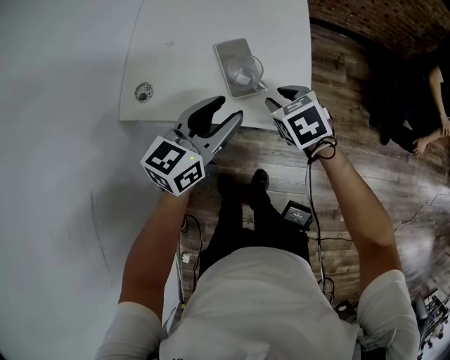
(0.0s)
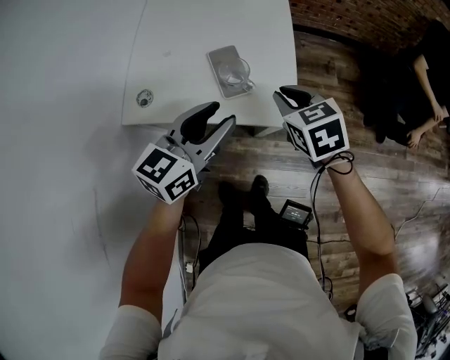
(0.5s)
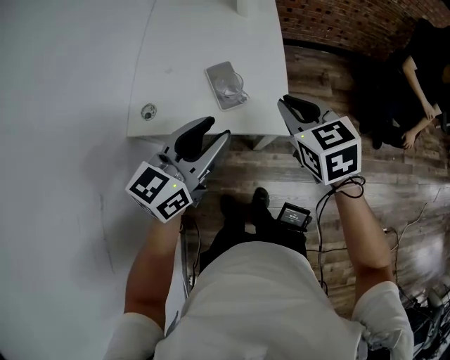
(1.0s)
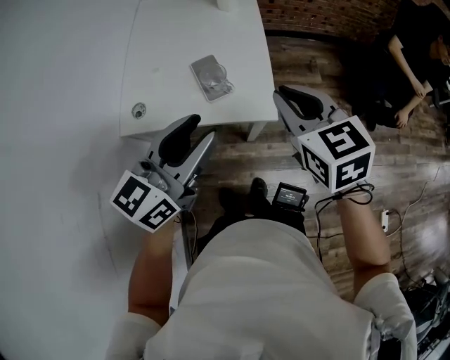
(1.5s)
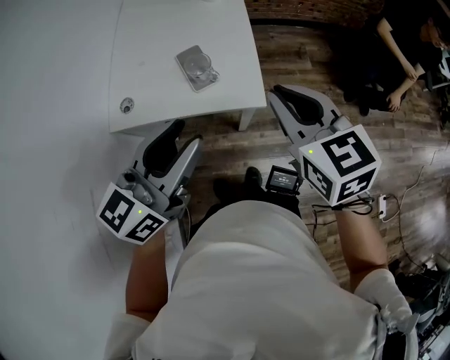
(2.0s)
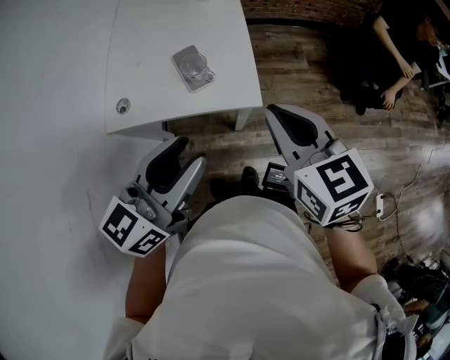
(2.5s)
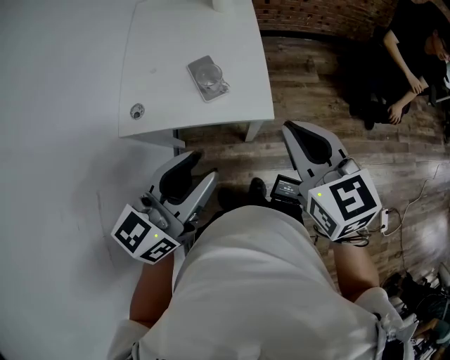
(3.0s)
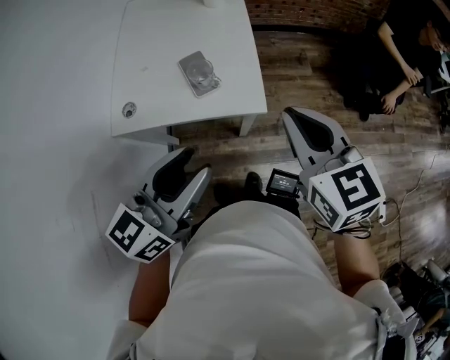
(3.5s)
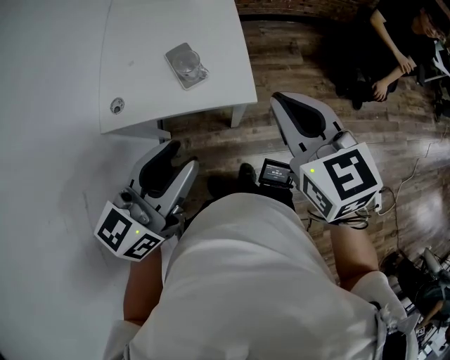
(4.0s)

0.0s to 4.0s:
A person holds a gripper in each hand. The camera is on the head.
0.0s to 2.0s: Both grippers move upward and backward, roughly 25 cm. The right gripper angles its fingers upward, by about 30 degrees, and closes up.
2.0s to 4.0s: The grippers make only small movements.

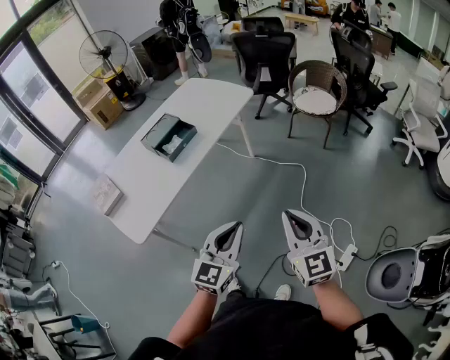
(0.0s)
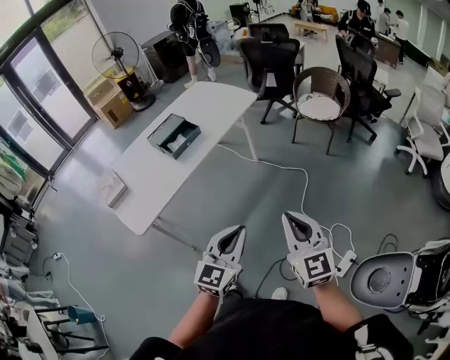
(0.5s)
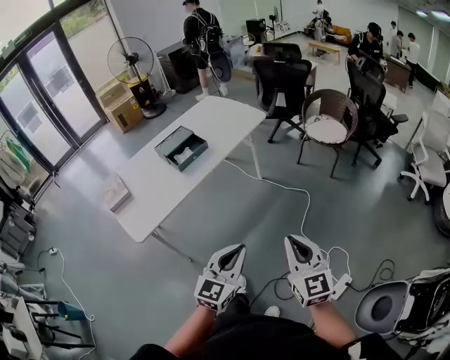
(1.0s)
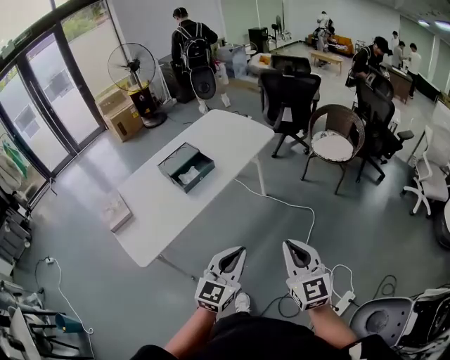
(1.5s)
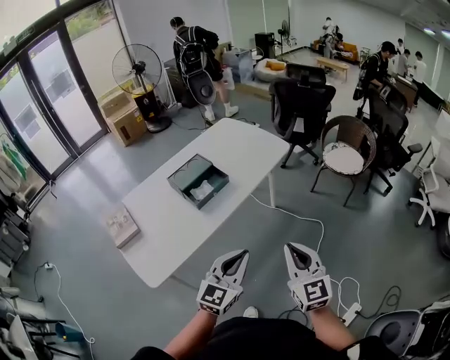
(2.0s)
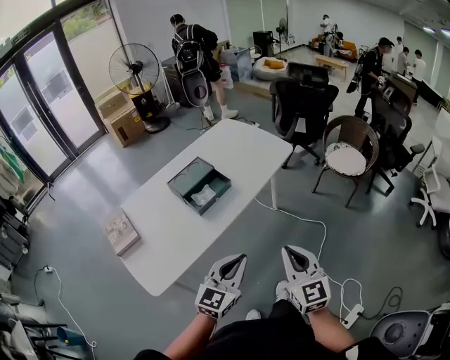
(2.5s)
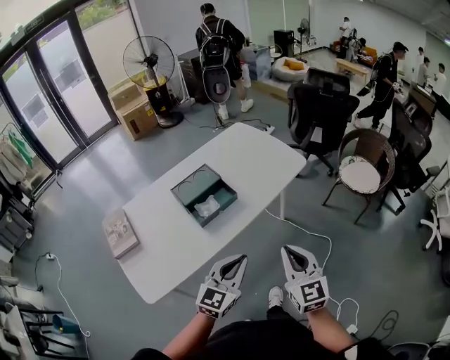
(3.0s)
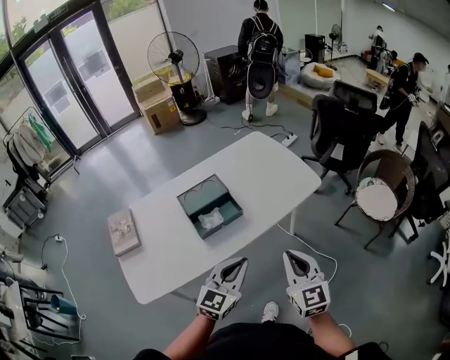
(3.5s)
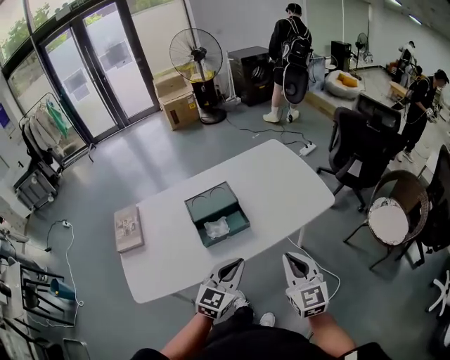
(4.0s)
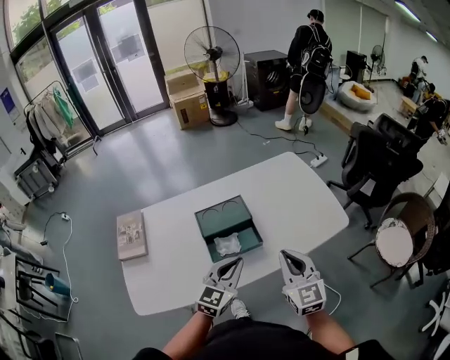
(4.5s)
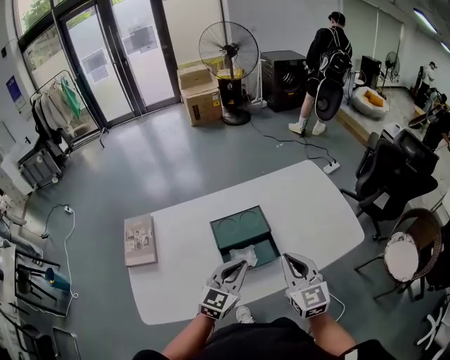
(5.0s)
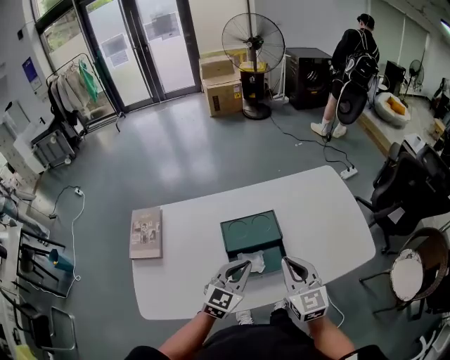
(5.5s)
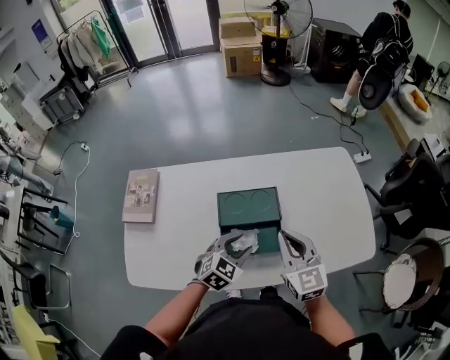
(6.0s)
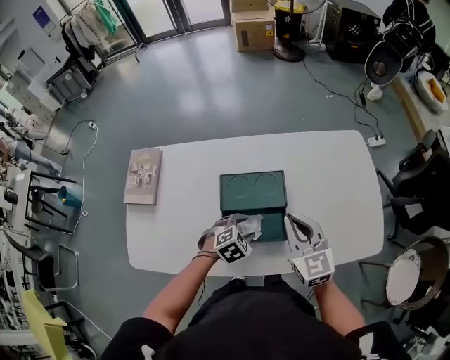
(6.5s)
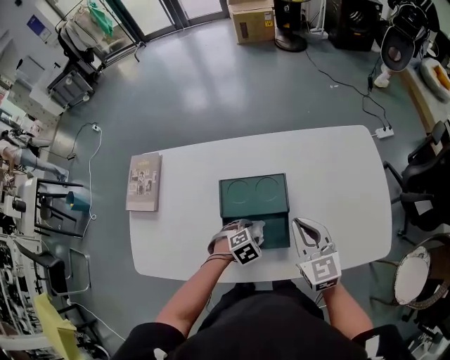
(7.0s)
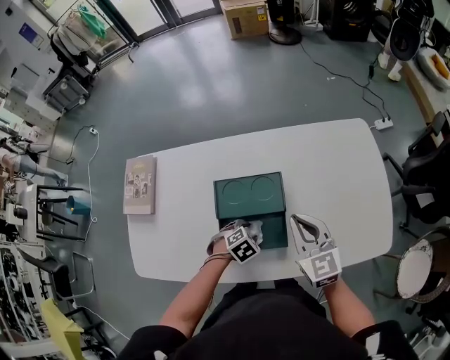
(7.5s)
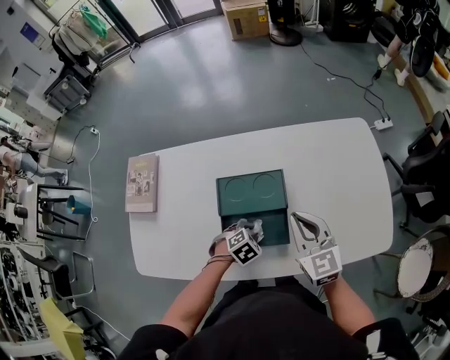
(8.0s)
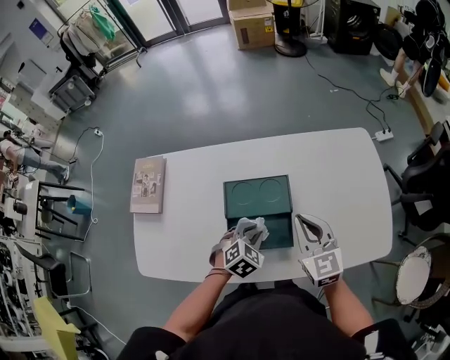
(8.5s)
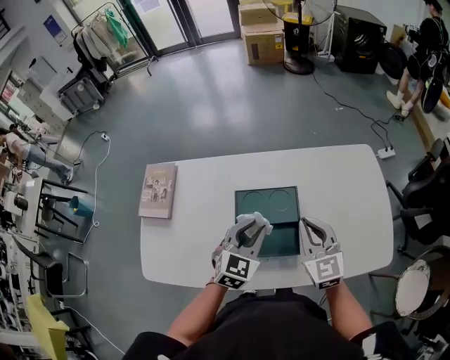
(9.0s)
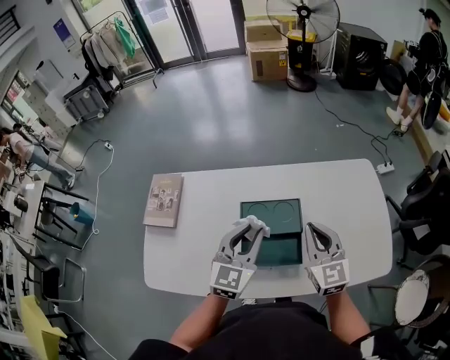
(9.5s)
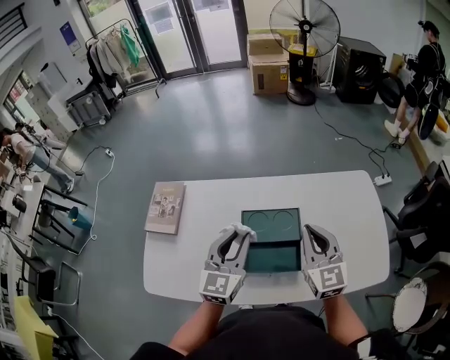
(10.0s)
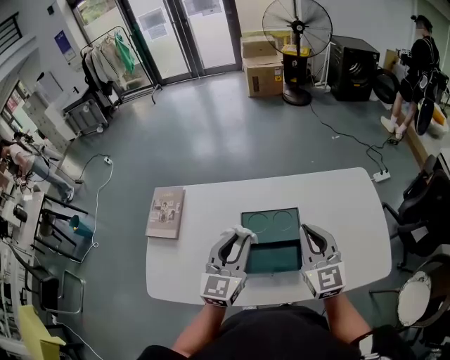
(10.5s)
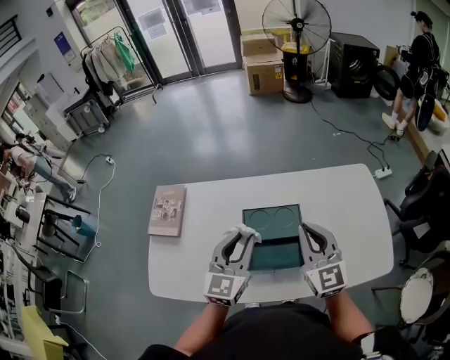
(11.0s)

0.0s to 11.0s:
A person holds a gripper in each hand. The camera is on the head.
0.0s to 2.0s: The two grippers go some 20 cm forward and to the left.
2.0s to 3.5s: The two grippers go approximately 25 cm forward.
3.5s to 5.5s: The grippers both shift forward and to the left by about 30 cm. The right gripper changes its angle by approximately 20 degrees.
5.5s to 7.5s: The left gripper moves downward, approximately 25 cm, points its fingers roughly 60 degrees further downward, and opens up. Meanwhile the right gripper goes some 15 cm forward and downward.
7.5s to 9.0s: The right gripper moves approximately 5 cm, while the left gripper travels upward by about 25 cm, points its fingers roughly 50 degrees further upward, and closes up.
9.0s to 11.0s: The right gripper is displaced upward by some 10 cm. Meanwhile the left gripper is displaced upward and to the left by approximately 10 cm, and turns by approximately 20 degrees.

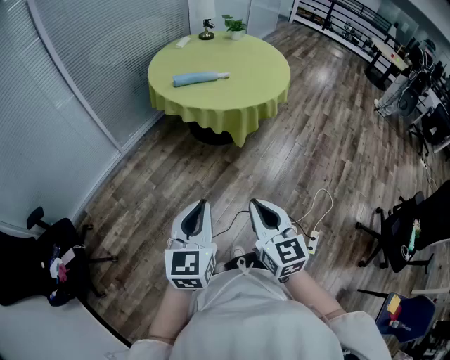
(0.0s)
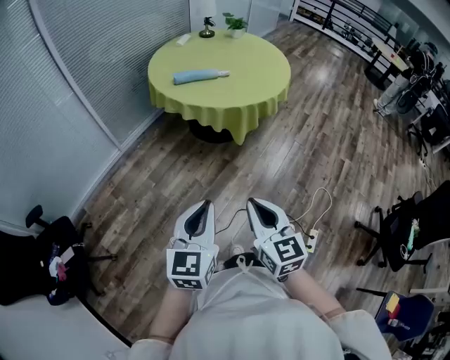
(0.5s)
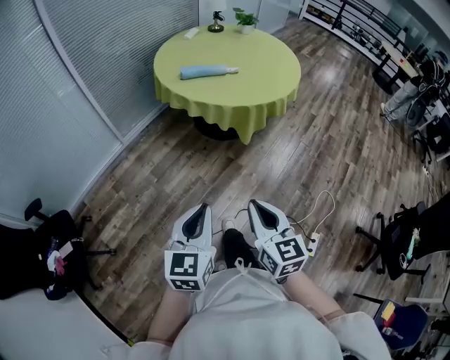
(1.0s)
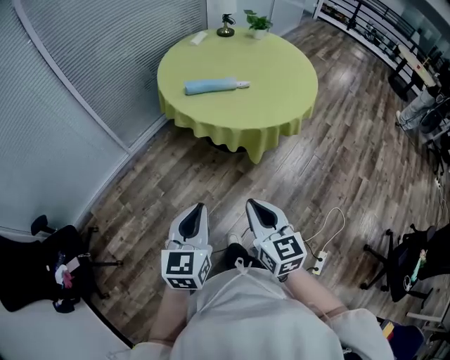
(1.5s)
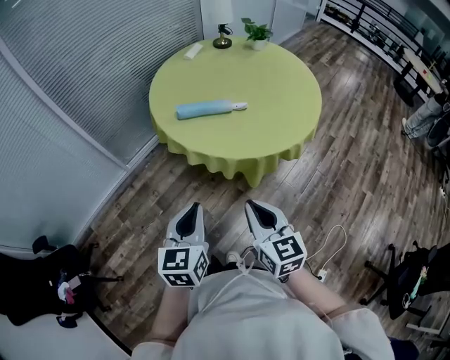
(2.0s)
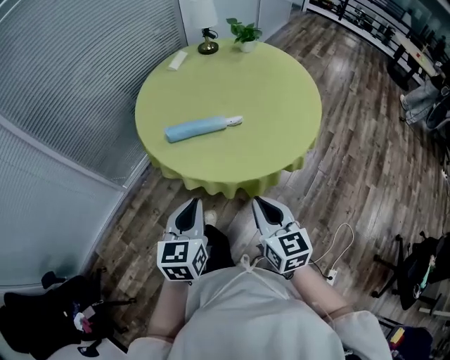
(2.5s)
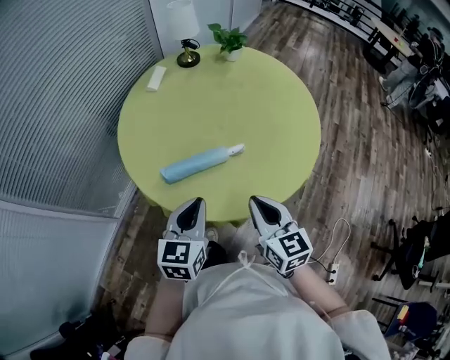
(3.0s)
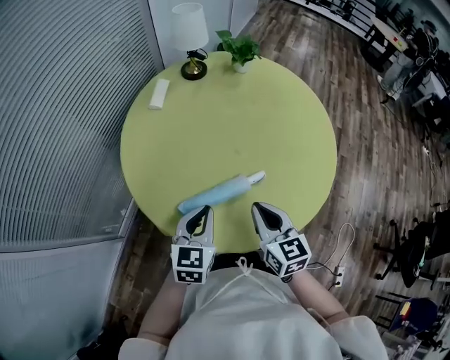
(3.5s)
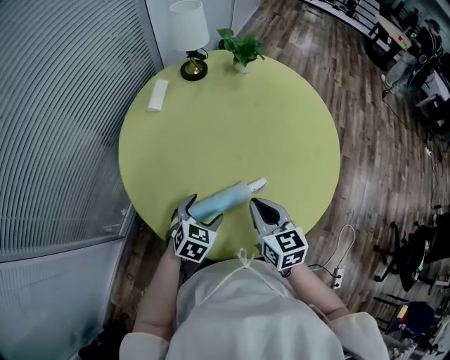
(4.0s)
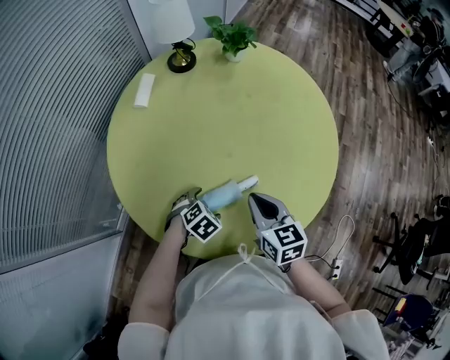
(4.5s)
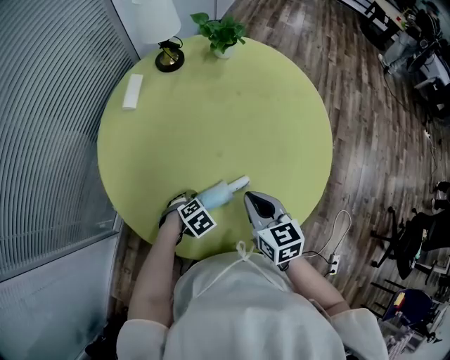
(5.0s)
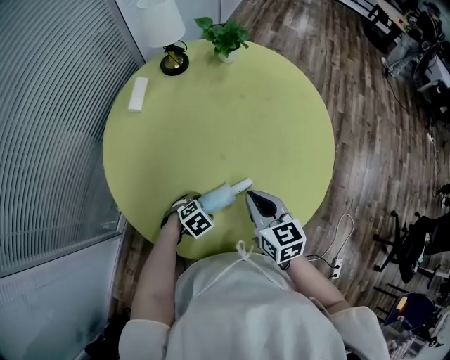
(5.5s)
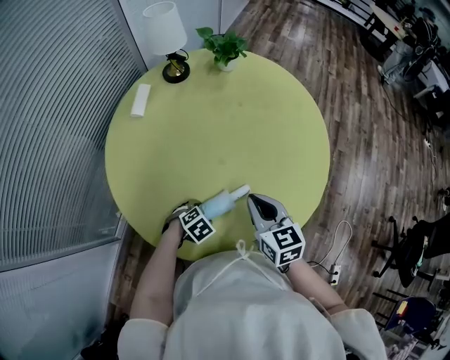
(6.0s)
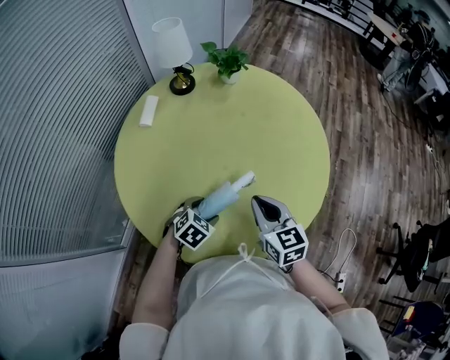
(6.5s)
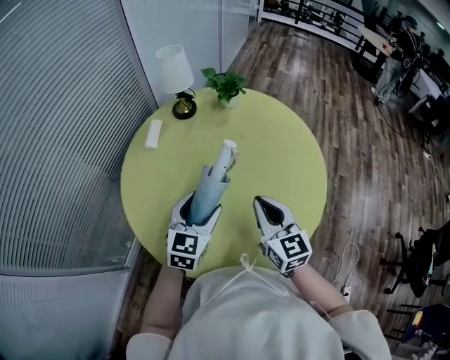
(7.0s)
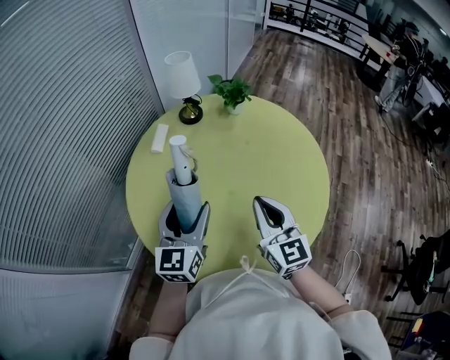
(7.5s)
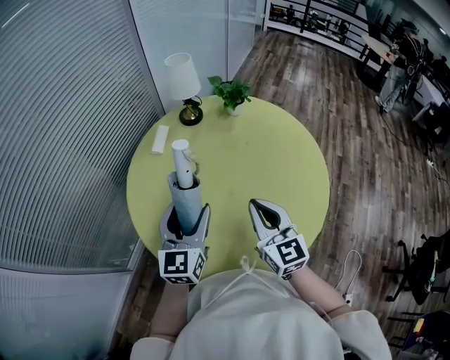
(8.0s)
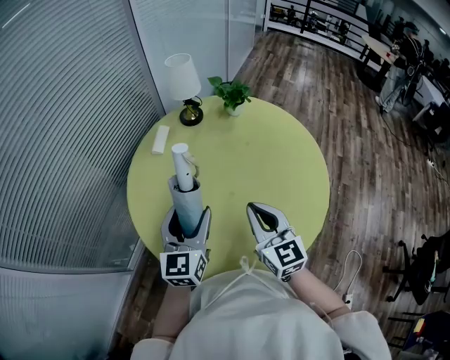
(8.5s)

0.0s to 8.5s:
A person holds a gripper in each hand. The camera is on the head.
0.0s to 2.0s: The two grippers go approximately 35 cm forward.
2.0s to 4.0s: Both grippers are carried about 50 cm. The right gripper turns by about 20 degrees. The left gripper swivels about 50 degrees, and opens up.
4.0s to 6.5s: The left gripper goes downward and returns, approximately 15 cm each way; the right gripper ends up some 5 cm from where it was.
6.5s to 8.5s: The right gripper is displaced upward by roughly 10 cm. Meanwhile the left gripper shifts some 25 cm upward, and points its fingers about 50 degrees further upward.

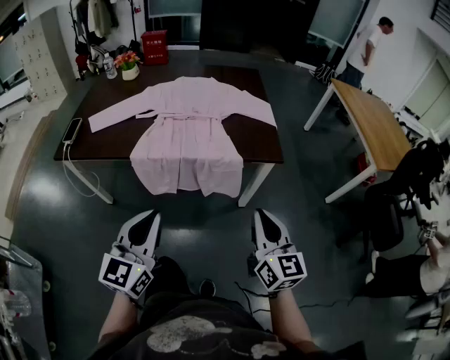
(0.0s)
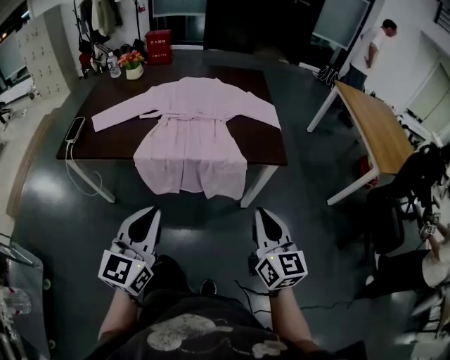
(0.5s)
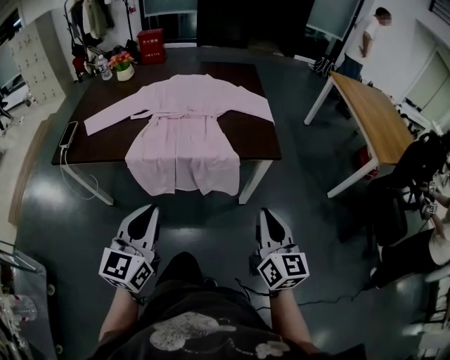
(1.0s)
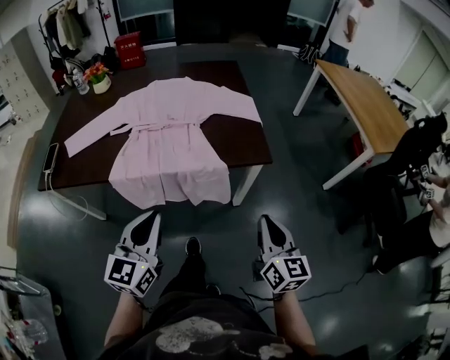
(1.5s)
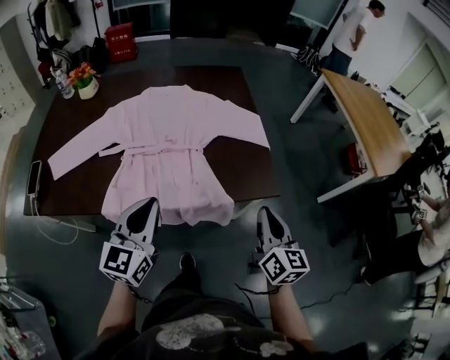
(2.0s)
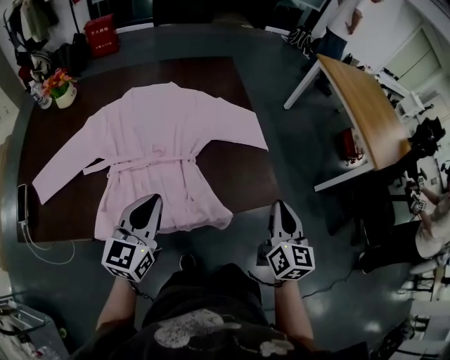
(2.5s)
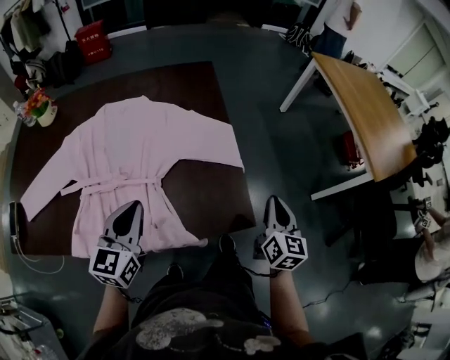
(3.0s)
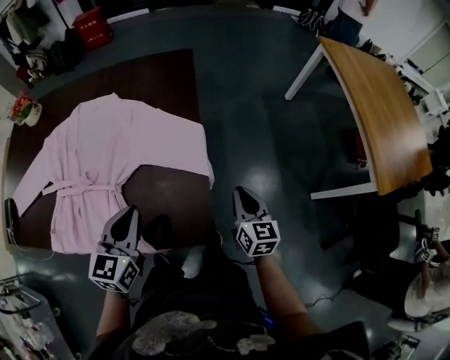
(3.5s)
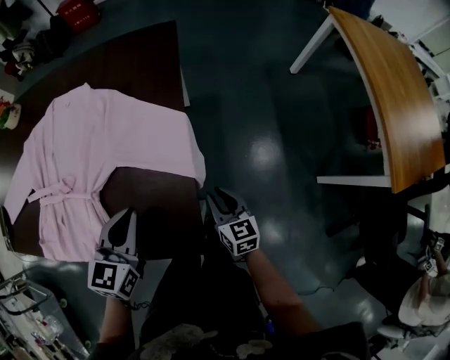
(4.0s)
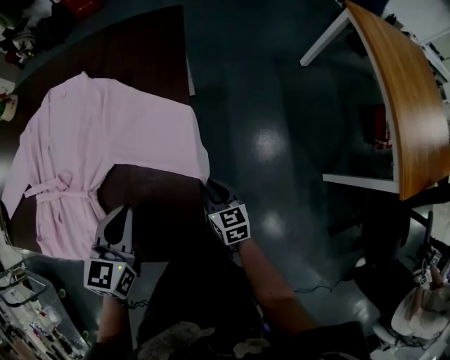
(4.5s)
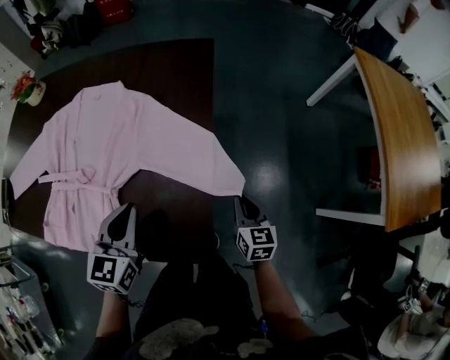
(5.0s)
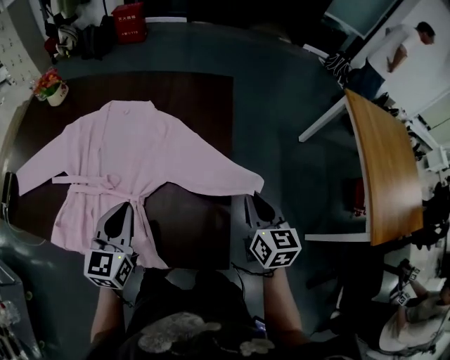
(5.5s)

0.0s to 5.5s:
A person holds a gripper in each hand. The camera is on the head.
0.0s to 2.0s: Both grippers move forward, approximately 25 cm.
2.0s to 3.5s: The left gripper is displaced forward and to the right by some 30 cm; the right gripper goes approximately 40 cm forward, to the right and downward.
3.5s to 5.5s: The right gripper travels upward, forward and to the left by roughly 15 cm. Meanwhile the left gripper shifts approximately 10 cm to the left.
